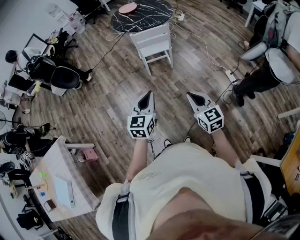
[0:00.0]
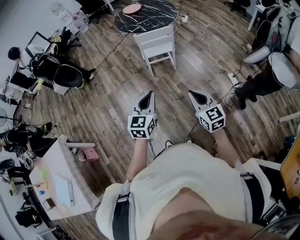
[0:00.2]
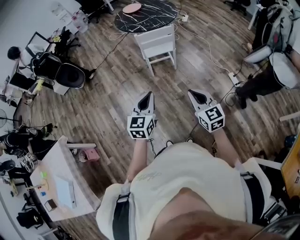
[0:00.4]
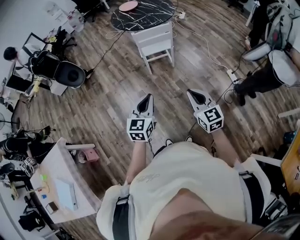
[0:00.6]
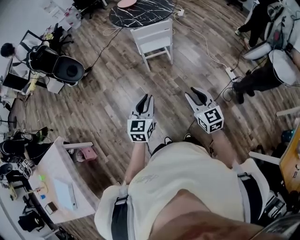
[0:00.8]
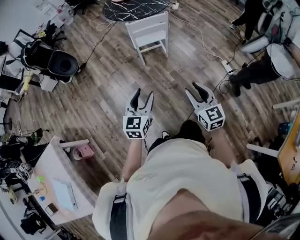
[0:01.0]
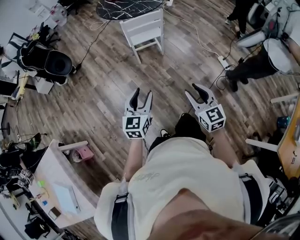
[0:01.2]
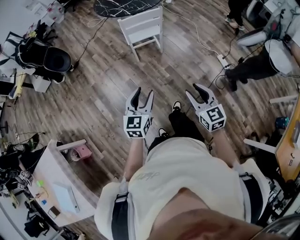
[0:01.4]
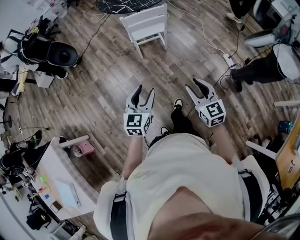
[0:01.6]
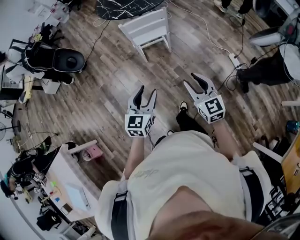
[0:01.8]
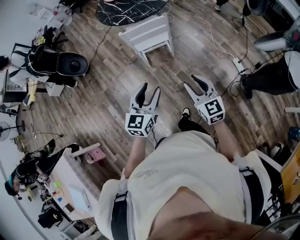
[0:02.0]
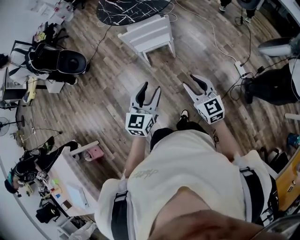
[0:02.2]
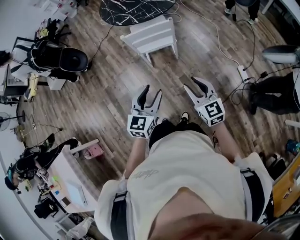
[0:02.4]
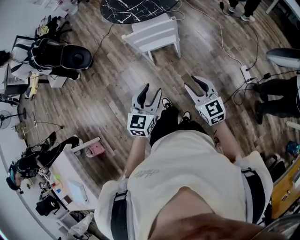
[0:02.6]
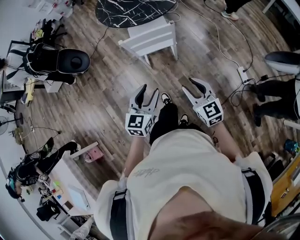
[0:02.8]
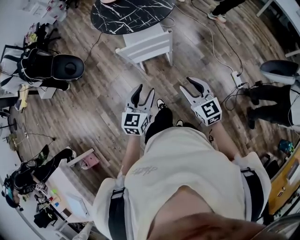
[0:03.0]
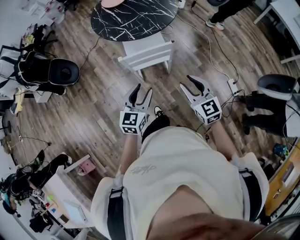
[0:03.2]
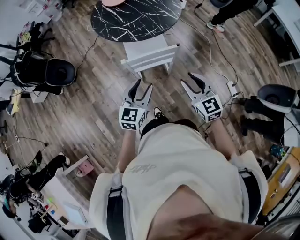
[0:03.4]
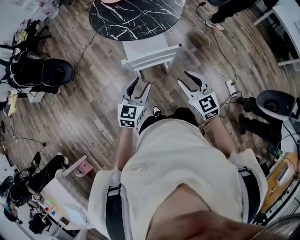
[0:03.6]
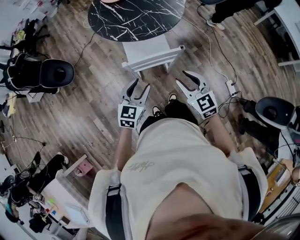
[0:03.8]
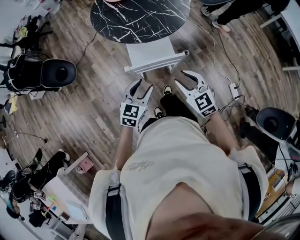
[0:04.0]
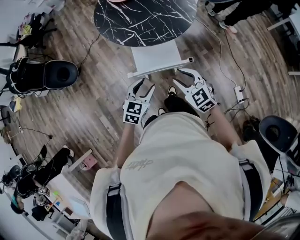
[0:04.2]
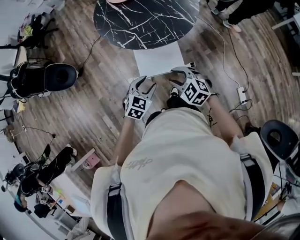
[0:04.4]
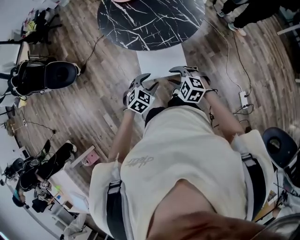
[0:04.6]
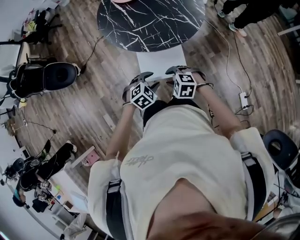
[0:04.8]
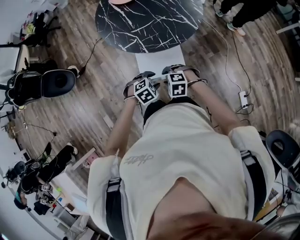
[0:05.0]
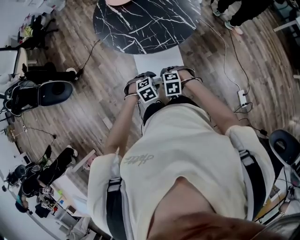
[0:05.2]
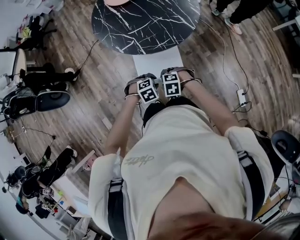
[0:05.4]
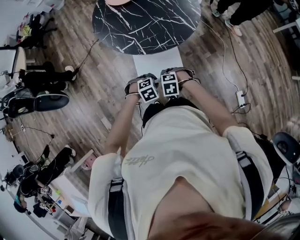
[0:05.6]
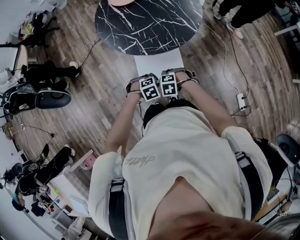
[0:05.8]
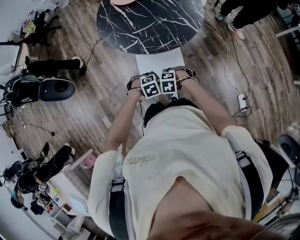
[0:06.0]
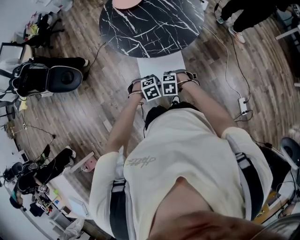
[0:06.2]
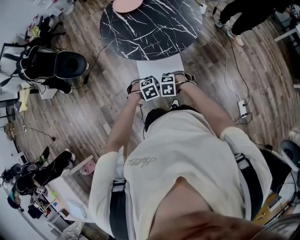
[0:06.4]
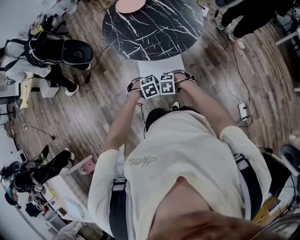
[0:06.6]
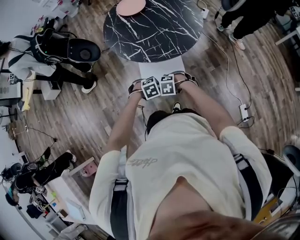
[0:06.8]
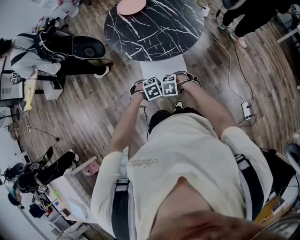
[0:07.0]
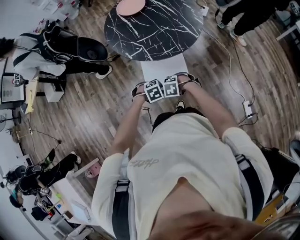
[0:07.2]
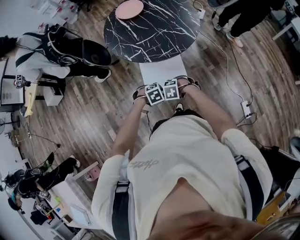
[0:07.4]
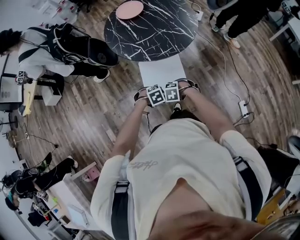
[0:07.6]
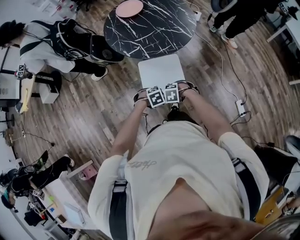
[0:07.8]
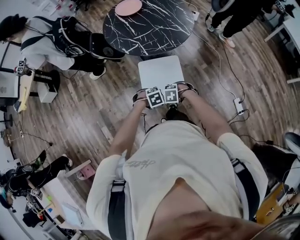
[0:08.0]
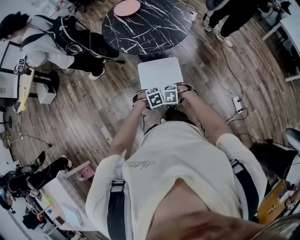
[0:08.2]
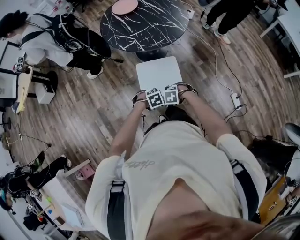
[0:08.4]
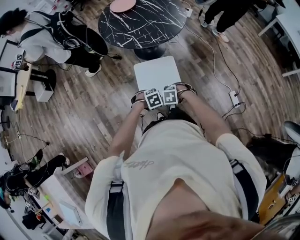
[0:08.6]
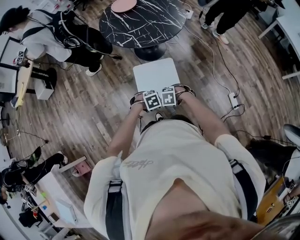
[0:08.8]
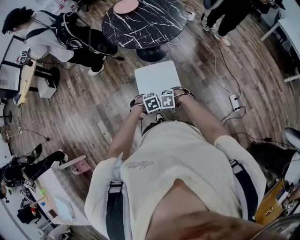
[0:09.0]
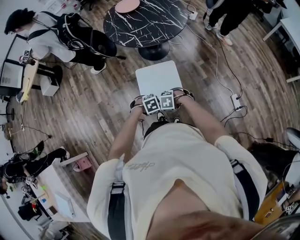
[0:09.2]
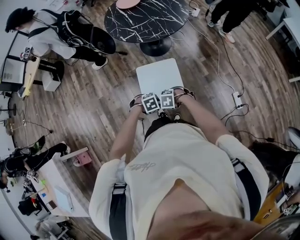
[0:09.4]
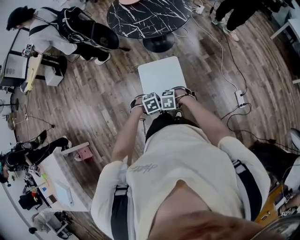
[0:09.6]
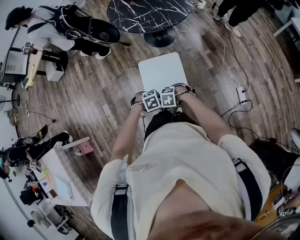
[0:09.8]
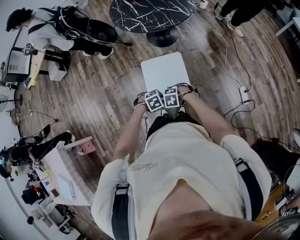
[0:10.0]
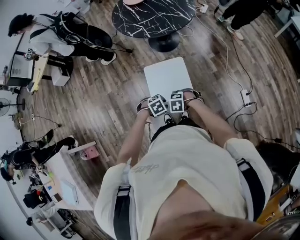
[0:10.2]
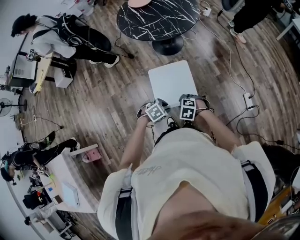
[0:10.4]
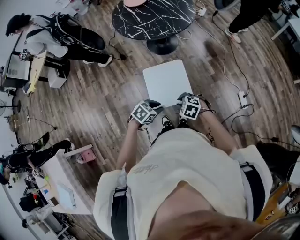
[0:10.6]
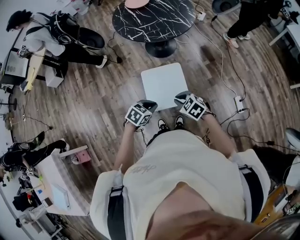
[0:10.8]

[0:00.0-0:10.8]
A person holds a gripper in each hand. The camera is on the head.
0:00.0 to 0:01.6: The right gripper heads forward, covering roughly 10 cm, and opens up; the left gripper is displaced forward and downward by about 10 cm, and opens.
0:01.6 to 0:03.0: Both grippers move forward, approximately 30 cm.
0:03.0 to 0:04.6: The right gripper shifts approximately 30 cm forward, and angles its fingers downward, by roughly 30 degrees. The left gripper is displaced forward and downward by approximately 35 cm, and tilts its fingers roughly 30 degrees downward.
0:04.6 to 0:06.2: Both grippers travel together downward, about 10 cm. The right gripper turns by about 30 degrees. Meanwhile the left gripper turns by approximately 30 degrees, and closes up.
0:06.2 to 0:07.8: The left gripper shifts by roughly 10 cm. The right gripper moves roughly 10 cm.
0:07.8 to 0:09.2: The right gripper moves about 15 cm. Meanwhile the left gripper moves approximately 15 cm.
0:09.2 to 0:10.8: The two grippers go about 10 cm upward. The left gripper changes its angle by approximately 40 degrees; the right gripper rotates some 40 degrees.

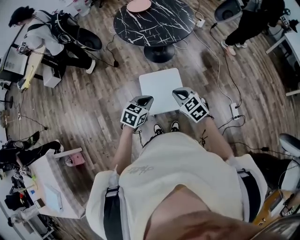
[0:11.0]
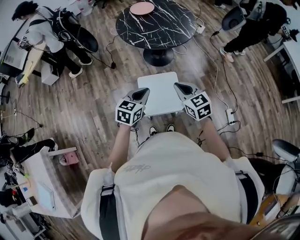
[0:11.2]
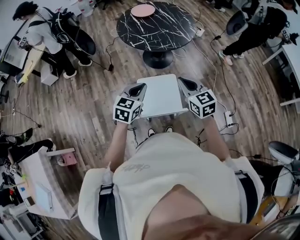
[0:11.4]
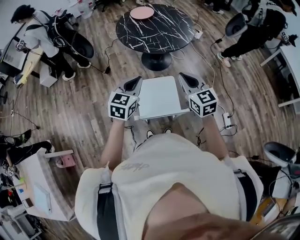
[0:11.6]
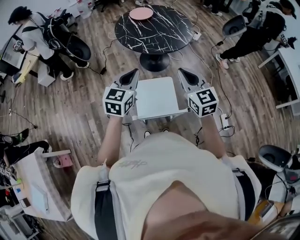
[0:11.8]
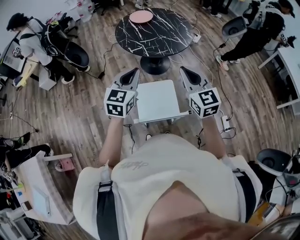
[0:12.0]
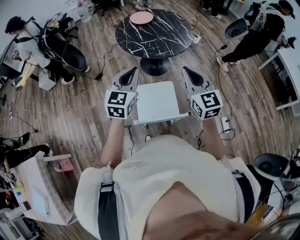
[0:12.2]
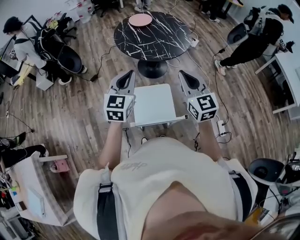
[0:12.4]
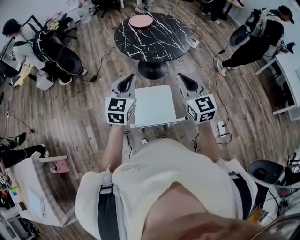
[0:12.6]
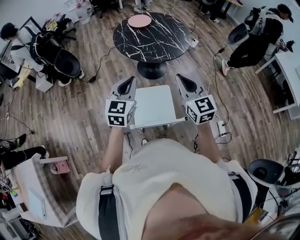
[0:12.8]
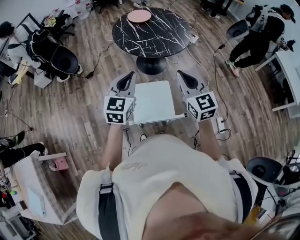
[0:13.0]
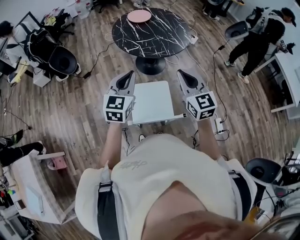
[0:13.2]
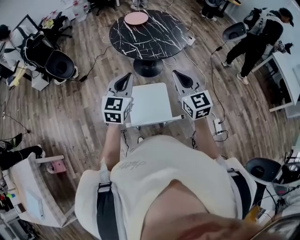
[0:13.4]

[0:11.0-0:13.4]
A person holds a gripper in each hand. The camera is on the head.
0:11.0 to 0:12.2: The left gripper heads upward and forward, covering approximately 25 cm, and angles its fingers upward, by approximately 30 degrees. The right gripper goes approximately 20 cm upward, and points its fingers about 30 degrees further upward.
0:12.2 to 0:13.4: There are only small adjustments of the grippers.

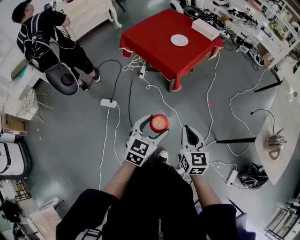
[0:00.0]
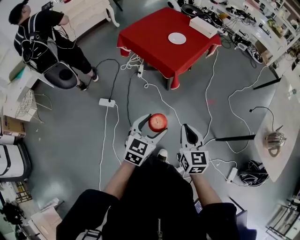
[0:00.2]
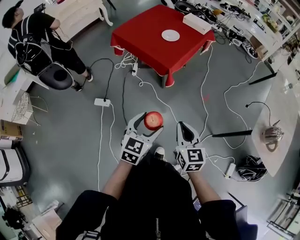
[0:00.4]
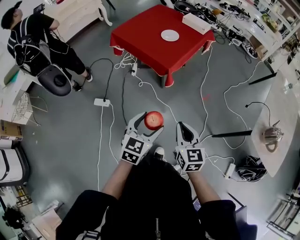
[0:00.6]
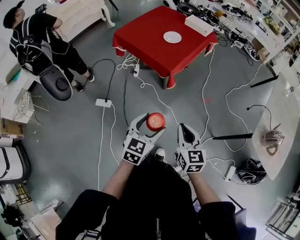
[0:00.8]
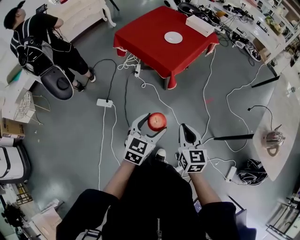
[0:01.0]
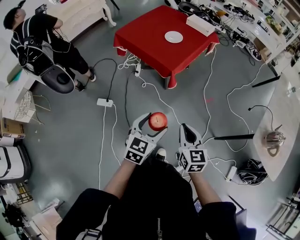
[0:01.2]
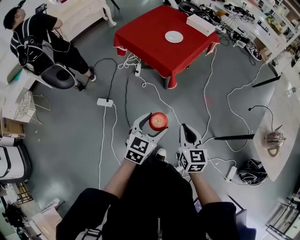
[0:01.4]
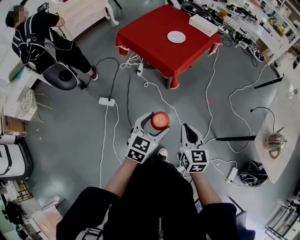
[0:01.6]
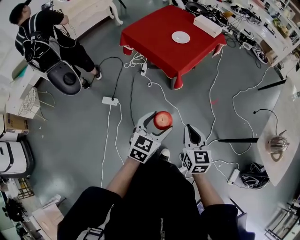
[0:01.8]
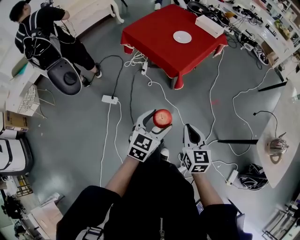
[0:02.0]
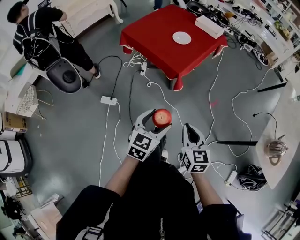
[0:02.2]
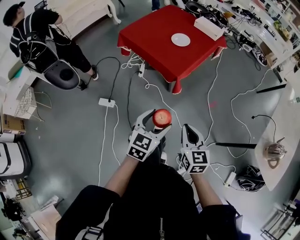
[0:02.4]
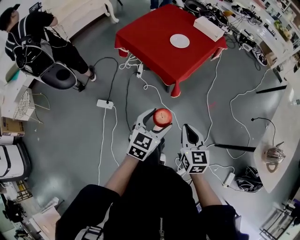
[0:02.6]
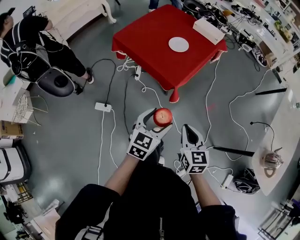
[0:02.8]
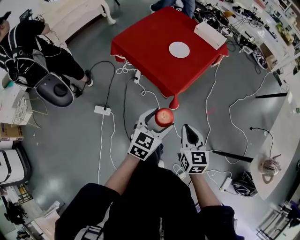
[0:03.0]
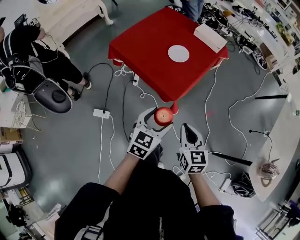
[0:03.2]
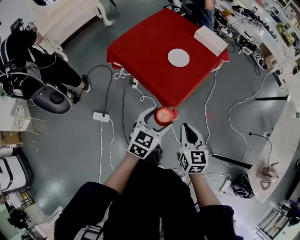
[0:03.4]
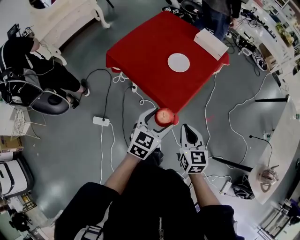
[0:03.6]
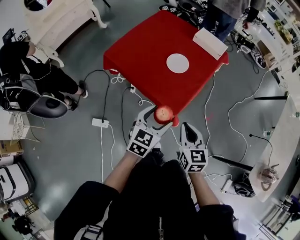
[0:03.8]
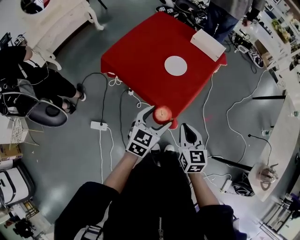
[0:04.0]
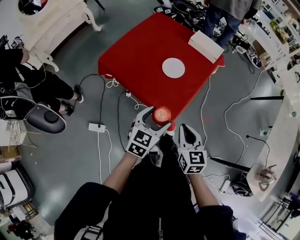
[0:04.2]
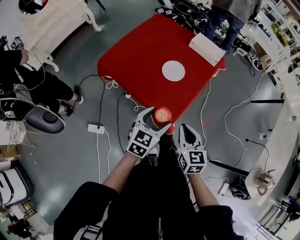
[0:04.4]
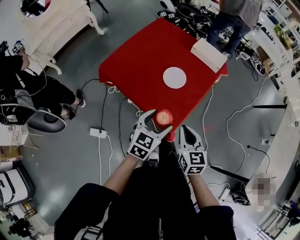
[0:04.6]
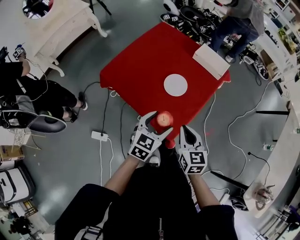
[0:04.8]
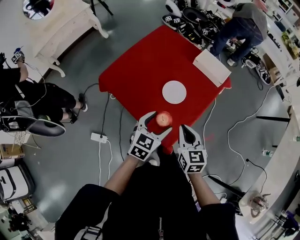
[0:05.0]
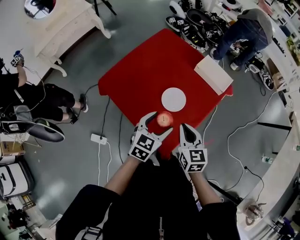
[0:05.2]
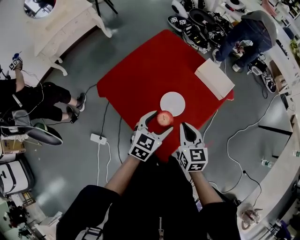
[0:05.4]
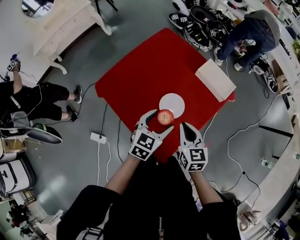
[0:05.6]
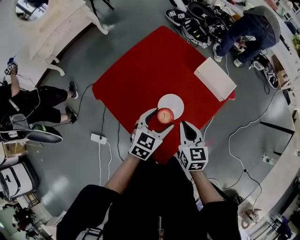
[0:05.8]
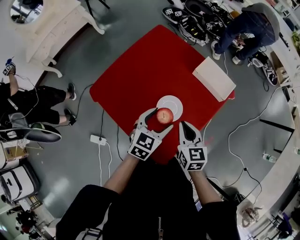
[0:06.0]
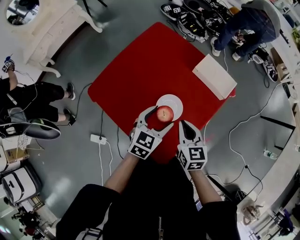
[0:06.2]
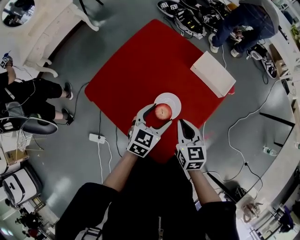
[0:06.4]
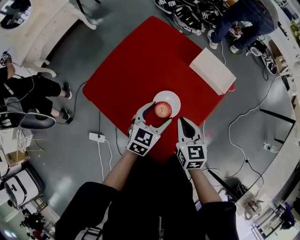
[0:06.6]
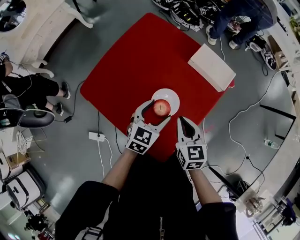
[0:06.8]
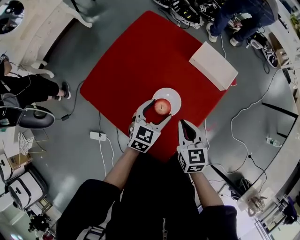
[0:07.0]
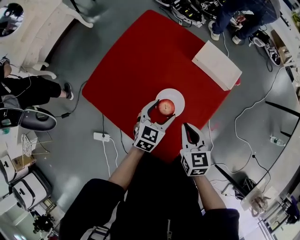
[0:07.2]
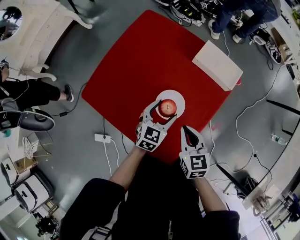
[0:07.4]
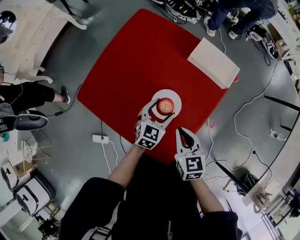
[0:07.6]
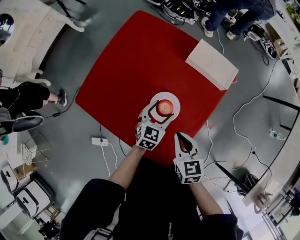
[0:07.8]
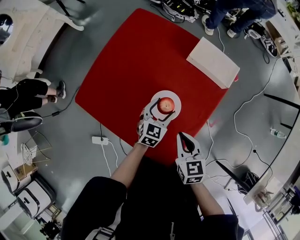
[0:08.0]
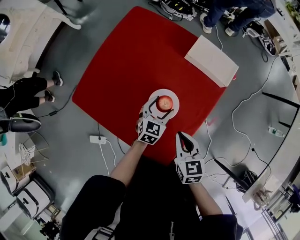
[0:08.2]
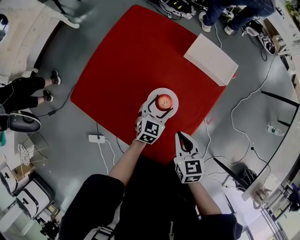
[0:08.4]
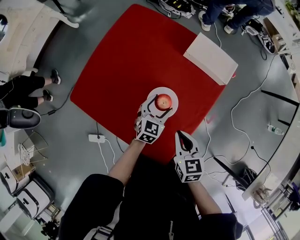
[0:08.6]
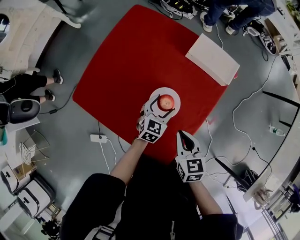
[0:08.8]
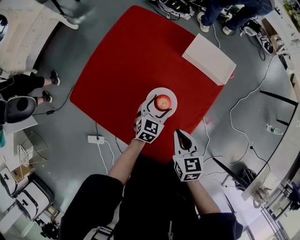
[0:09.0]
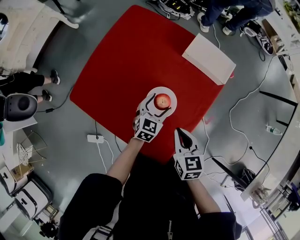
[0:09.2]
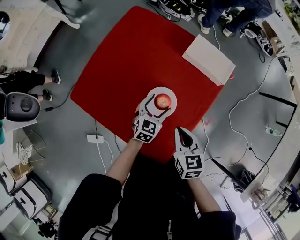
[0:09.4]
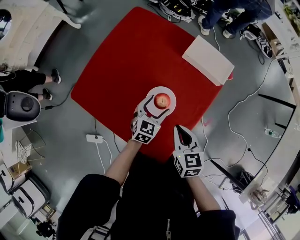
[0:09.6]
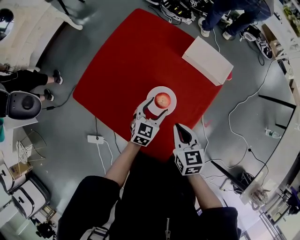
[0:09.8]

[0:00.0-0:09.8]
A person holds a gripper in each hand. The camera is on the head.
0:00.0 to 0:01.4: The grippers make only small movements.
0:01.4 to 0:02.8: The two grippers go roughly 15 cm forward.
0:02.8 to 0:04.2: The grippers both shift forward by about 25 cm.
0:04.2 to 0:05.6: Both grippers travel together forward, approximately 30 cm.
0:05.6 to 0:07.0: The right gripper shifts roughly 5 cm downward. Meanwhile the left gripper is displaced downward and forward by roughly 10 cm.
0:07.0 to 0:08.4: The right gripper changes place by approximately 5 cm. The left gripper is displaced downward by about 10 cm.
0:08.4 to 0:09.8: The grippers stay close to where they were, moving slightly.
